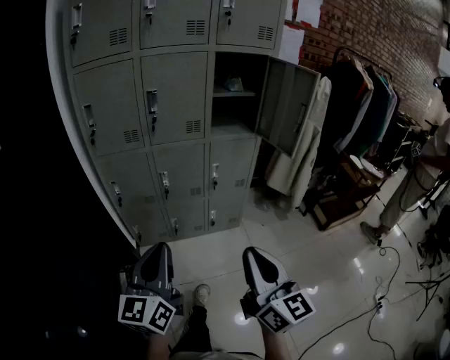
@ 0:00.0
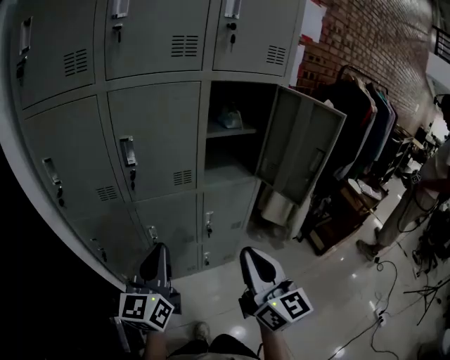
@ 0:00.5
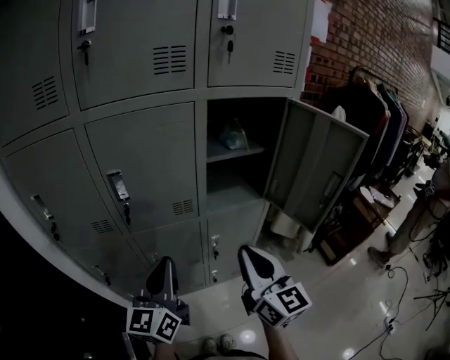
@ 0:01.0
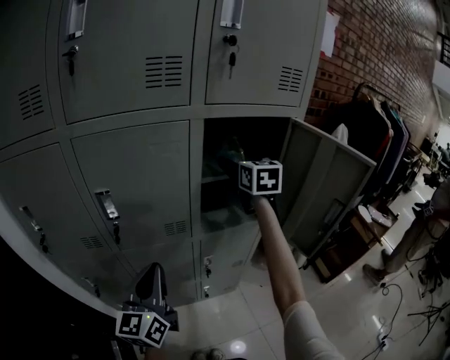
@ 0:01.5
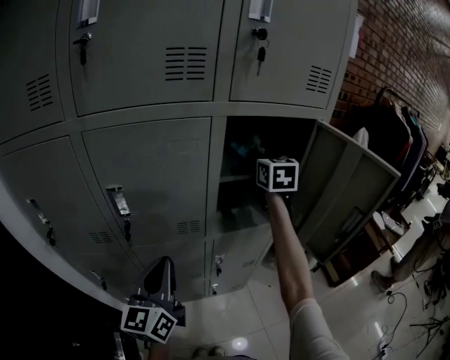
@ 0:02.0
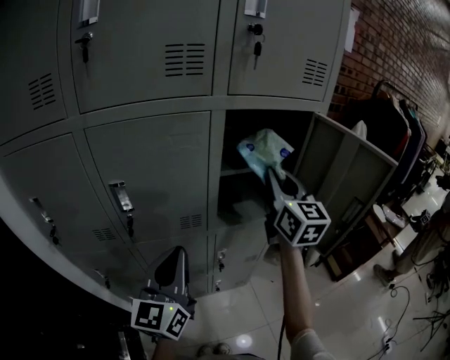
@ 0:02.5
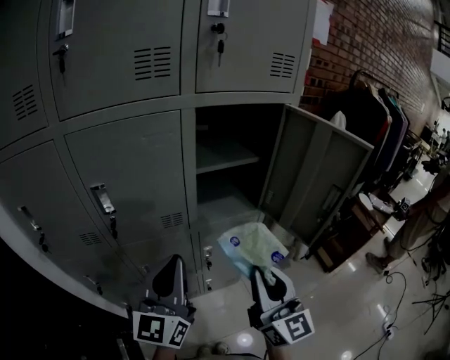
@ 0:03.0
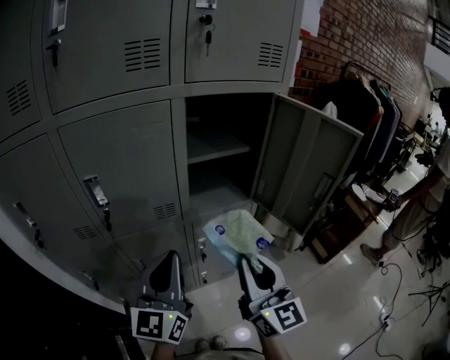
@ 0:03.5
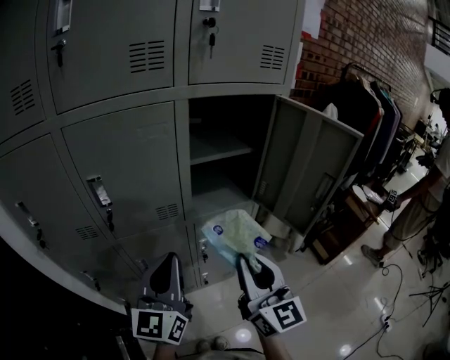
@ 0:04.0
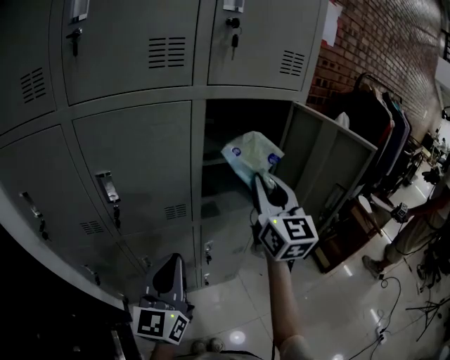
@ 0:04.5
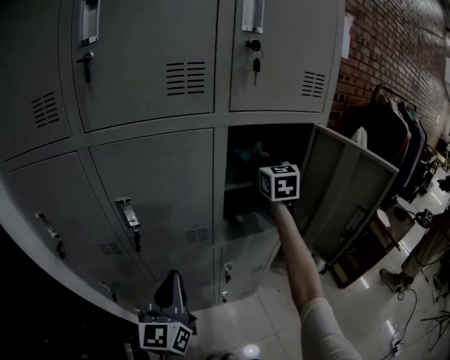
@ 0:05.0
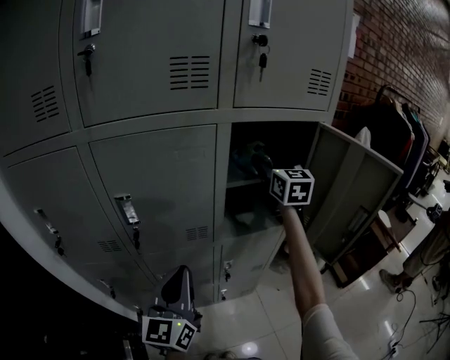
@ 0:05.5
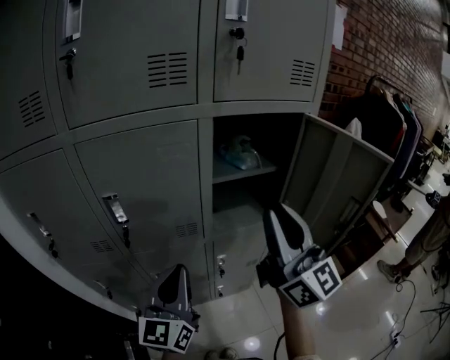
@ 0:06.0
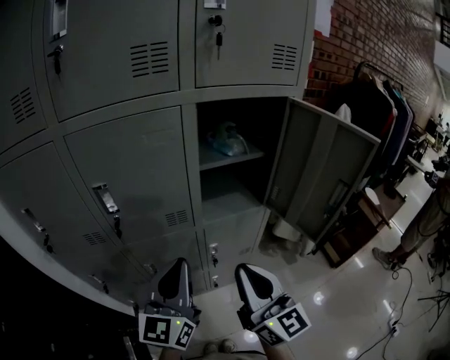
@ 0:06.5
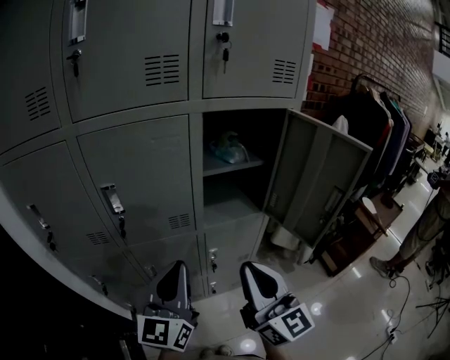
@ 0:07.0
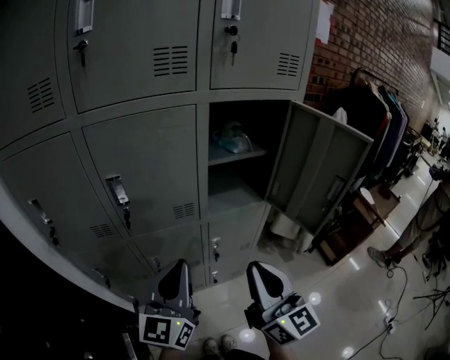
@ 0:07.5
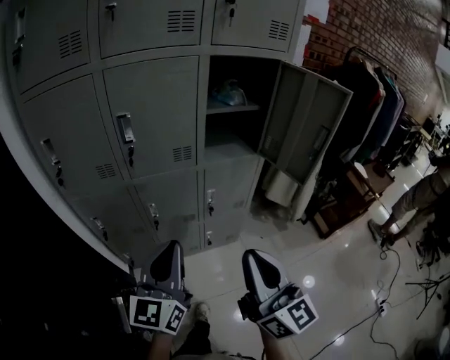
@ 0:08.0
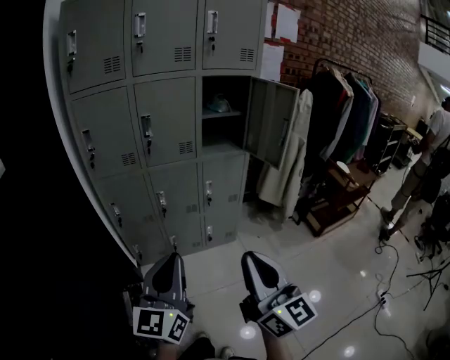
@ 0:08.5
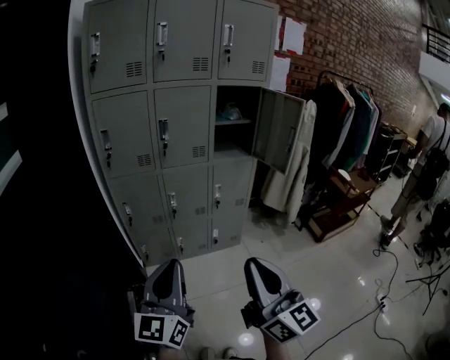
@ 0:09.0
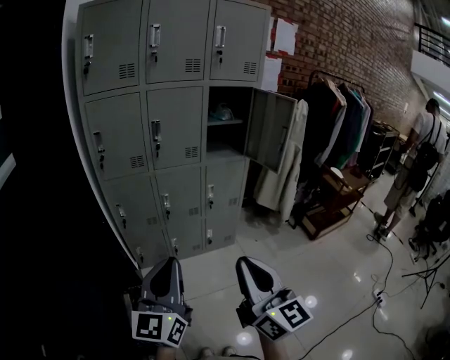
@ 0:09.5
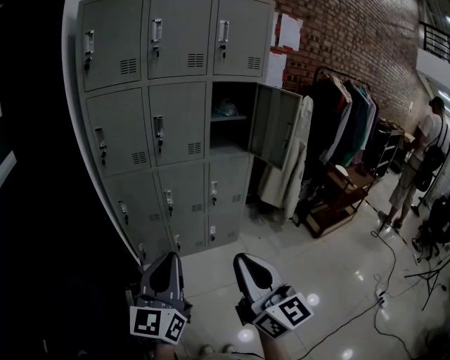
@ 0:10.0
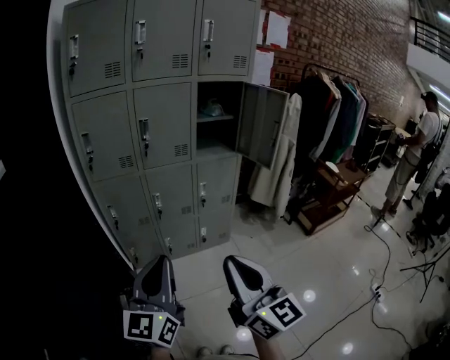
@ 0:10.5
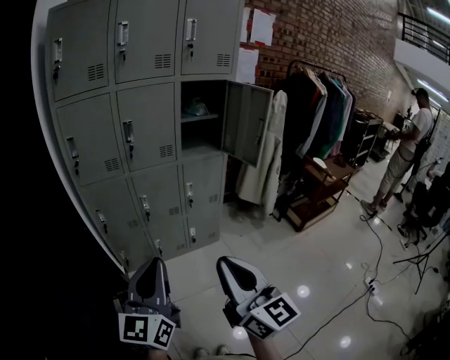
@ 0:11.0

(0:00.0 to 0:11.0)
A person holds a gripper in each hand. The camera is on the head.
0:00.0 - 0:02.0: Both grippers are carried forward, roughly 60 cm. The right gripper changes its angle by roughly 30 degrees, and opens and closes again.
0:02.0 - 0:03.5: The right gripper travels backward by roughly 40 cm, and rotates approximately 30 degrees. The left gripper is displaced to the right by approximately 5 cm.
0:03.5 - 0:05.5: The right gripper travels forward by some 35 cm, and opens. The left gripper heads to the left, covering roughly 5 cm.
0:05.5 - 0:07.5: The right gripper heads backward, covering some 40 cm, turns by roughly 20 degrees, and closes its fingers; the left gripper travels backward by approximately 5 cm.
0:07.5 - 0:09.0: The pair of grippers is taken backward, about 40 cm.
0:09.0 - 0:11.0: The grippers stay close to where they were, moving slightly.

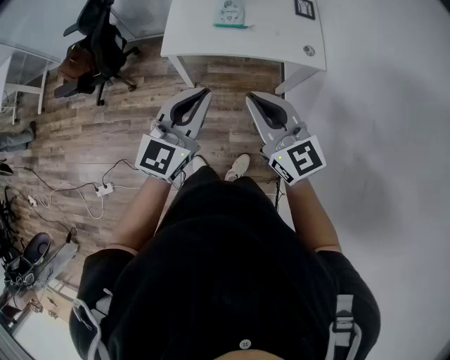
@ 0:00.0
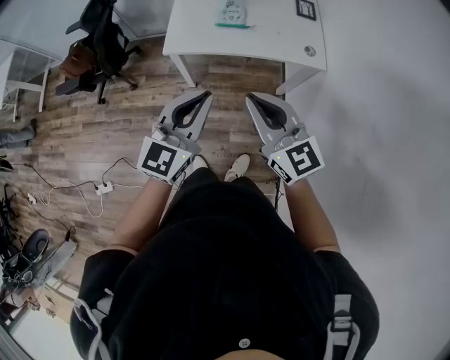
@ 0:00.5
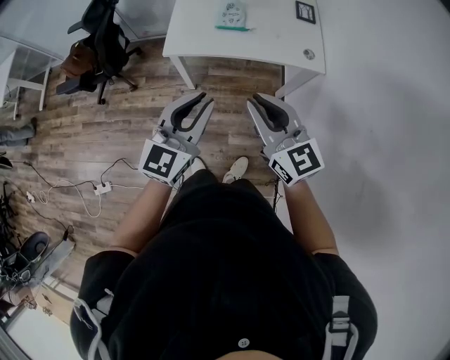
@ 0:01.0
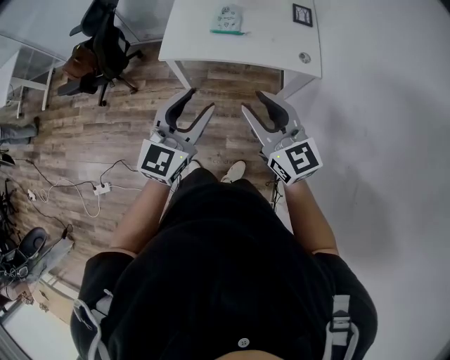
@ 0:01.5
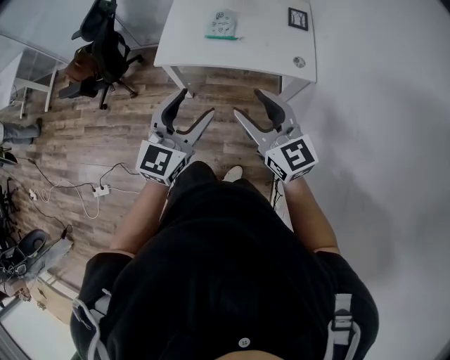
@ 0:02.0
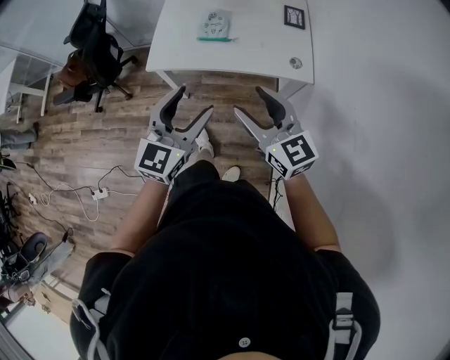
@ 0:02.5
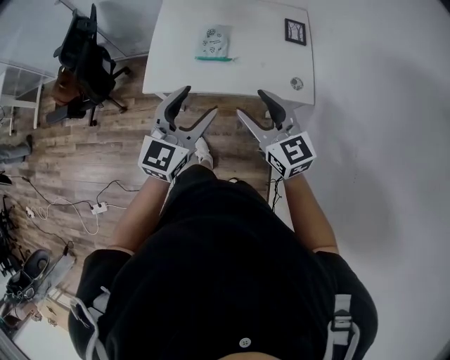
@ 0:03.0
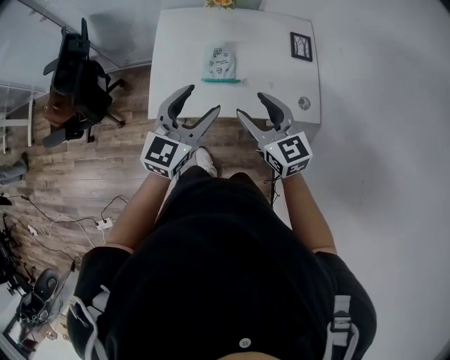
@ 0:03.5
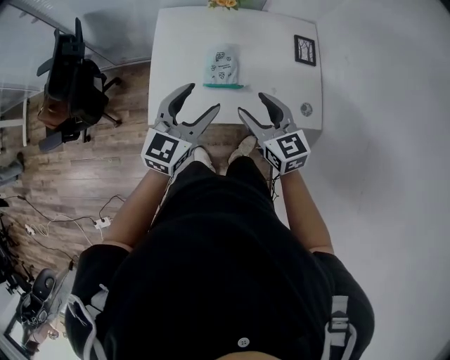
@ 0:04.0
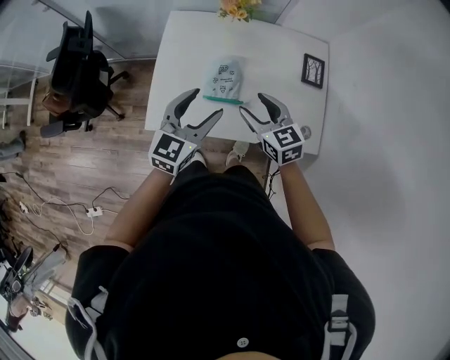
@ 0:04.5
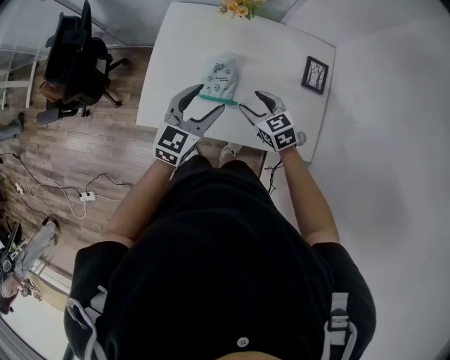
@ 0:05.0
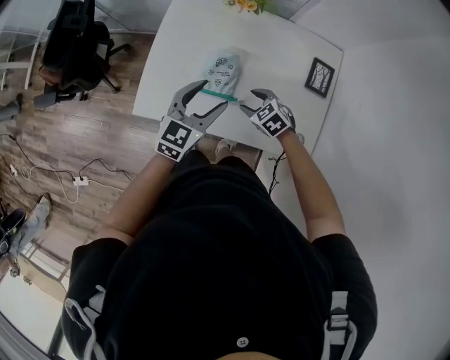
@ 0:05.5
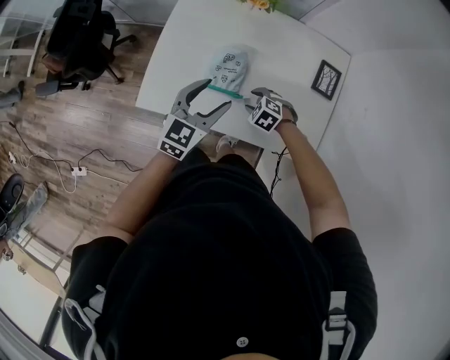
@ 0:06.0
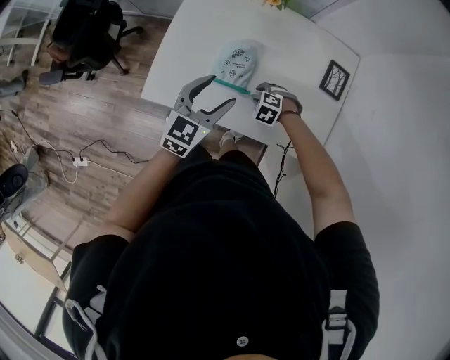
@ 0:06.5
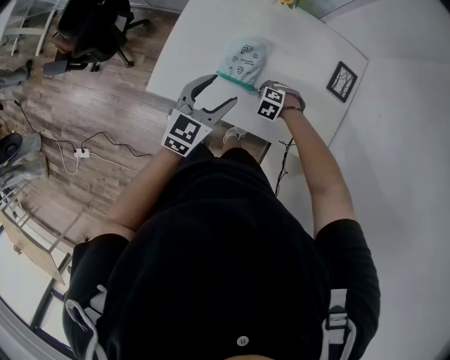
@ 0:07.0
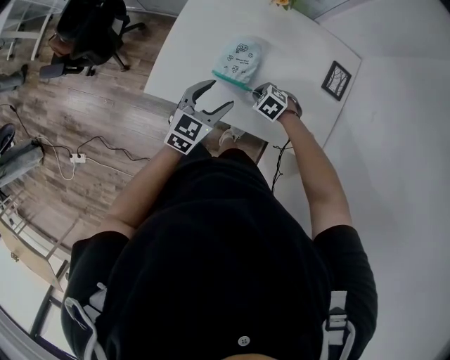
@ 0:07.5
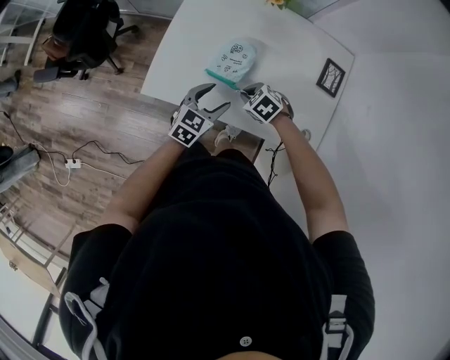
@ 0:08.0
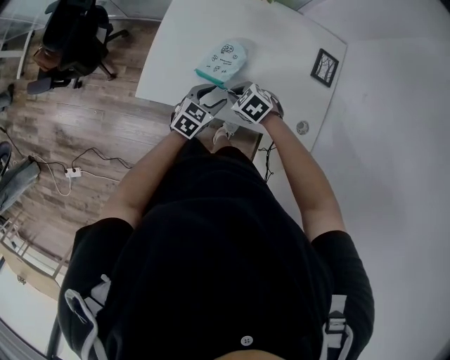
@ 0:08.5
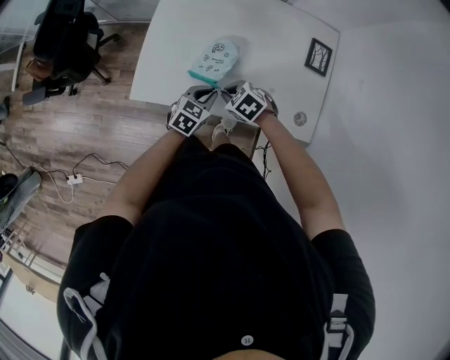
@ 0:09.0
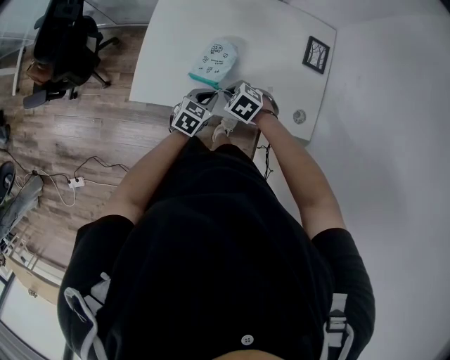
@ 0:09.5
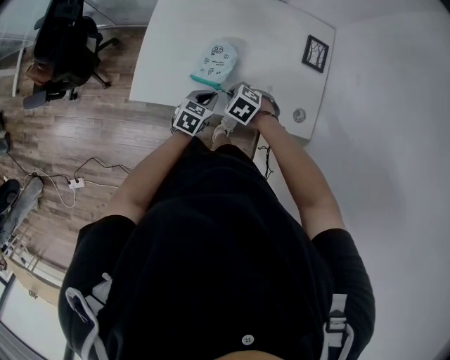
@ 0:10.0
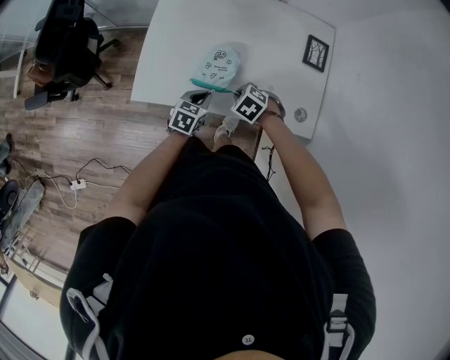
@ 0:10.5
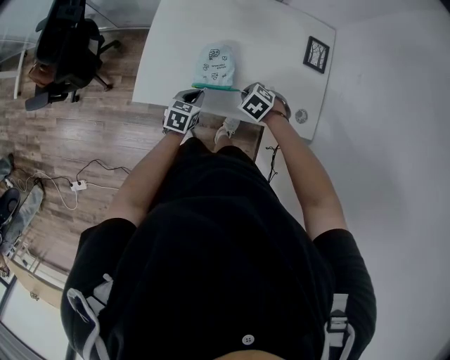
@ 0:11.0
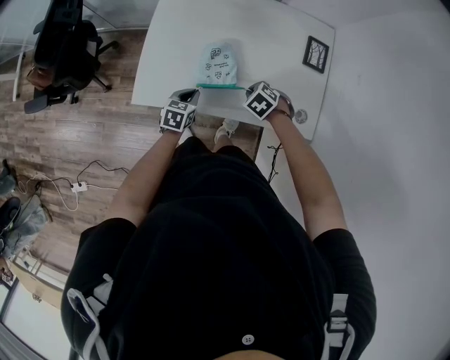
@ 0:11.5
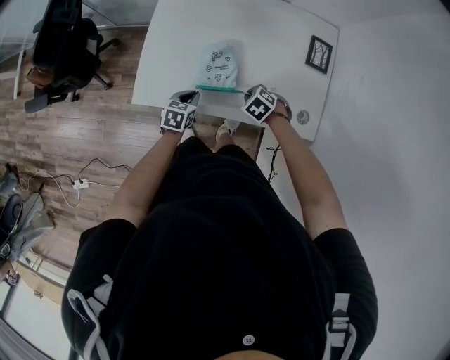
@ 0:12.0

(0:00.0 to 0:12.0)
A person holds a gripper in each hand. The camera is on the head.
0:00.0 - 0:02.0: The two grippers go roughly 10 cm to the right. The right gripper opens up. The left gripper opens its fingers.
0:02.0 - 0:04.0: The grippers both shift forward by approximately 35 cm.
0:04.0 - 0:06.0: The right gripper shifts approximately 30 cm downward, and points its fingers some 50 degrees further downward. The left gripper changes place by approximately 15 cm.
0:06.0 - 0:08.0: The left gripper is displaced downward by roughly 10 cm. Meanwhile the right gripper ends up about 5 cm from where it was, and closes up.
0:08.0 - 0:10.0: The left gripper shifts about 5 cm downward, and closes its fingers.
0:10.0 - 0:12.0: The right gripper changes place by about 5 cm, while the left gripper moves about 10 cm.

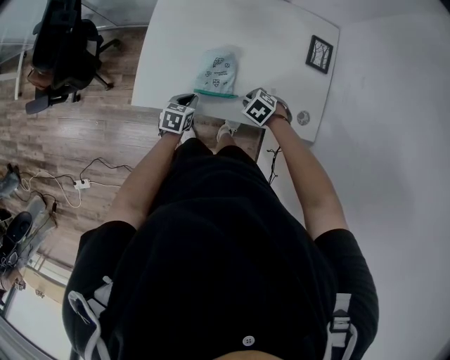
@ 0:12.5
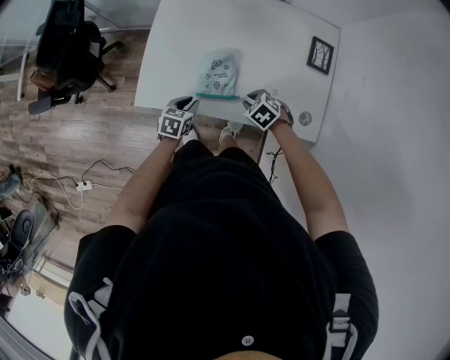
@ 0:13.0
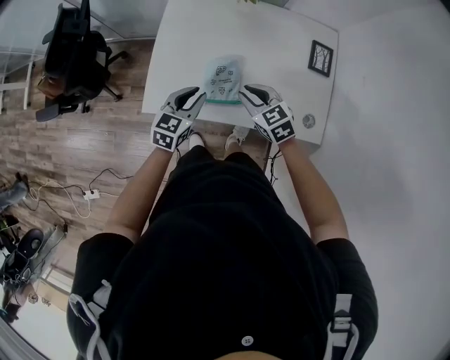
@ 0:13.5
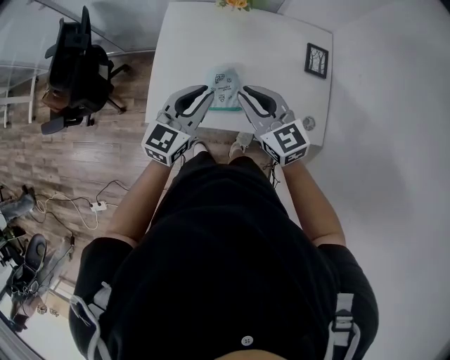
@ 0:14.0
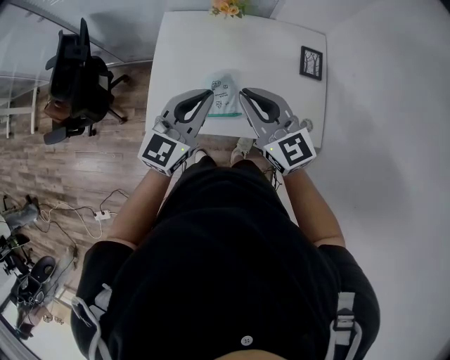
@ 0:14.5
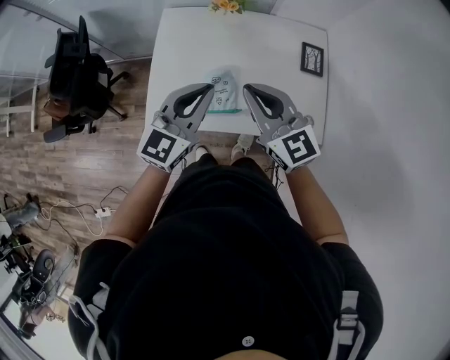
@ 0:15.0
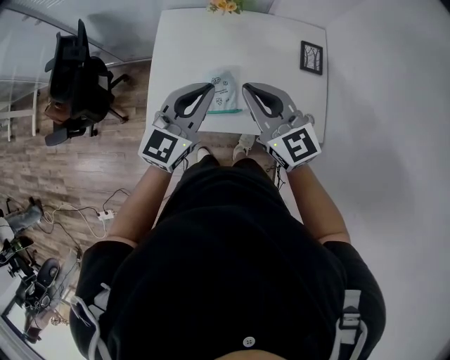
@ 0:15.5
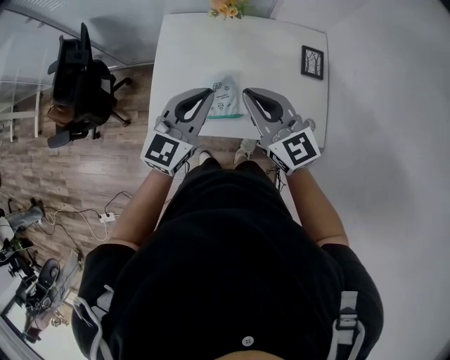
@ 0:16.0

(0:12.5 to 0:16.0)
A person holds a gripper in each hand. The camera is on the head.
0:12.5 - 0:14.5: The grippers both shift upward by roughly 35 cm. The left gripper tilts its fingers approximately 50 degrees upward; the right gripper tilts its fingers roughly 70 degrees upward.
0:14.5 - 0:16.0: Both grippers stay put.
